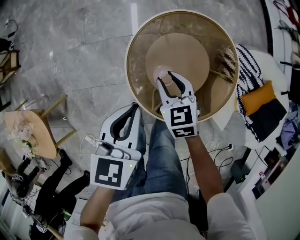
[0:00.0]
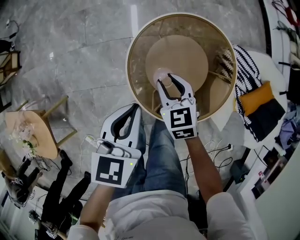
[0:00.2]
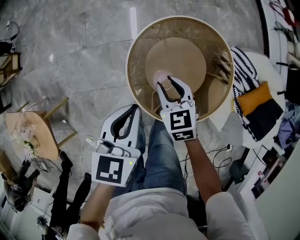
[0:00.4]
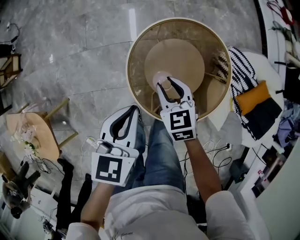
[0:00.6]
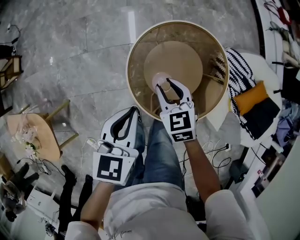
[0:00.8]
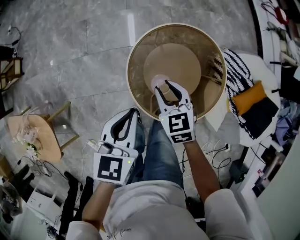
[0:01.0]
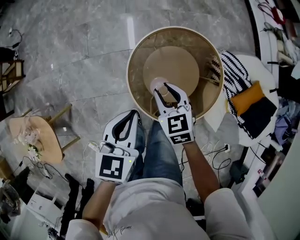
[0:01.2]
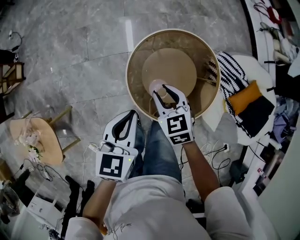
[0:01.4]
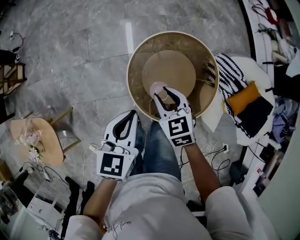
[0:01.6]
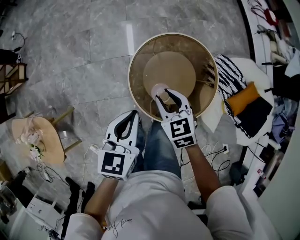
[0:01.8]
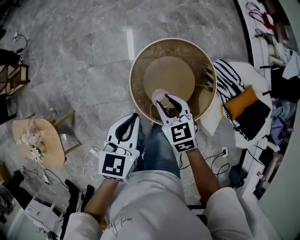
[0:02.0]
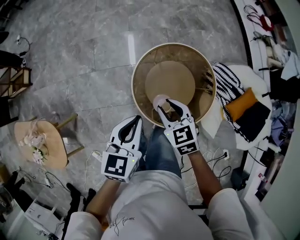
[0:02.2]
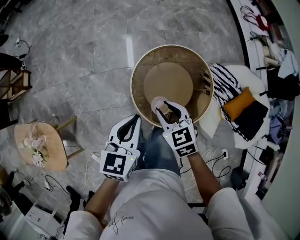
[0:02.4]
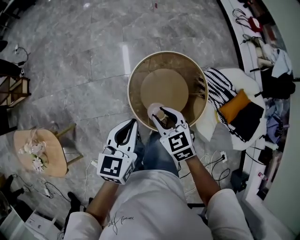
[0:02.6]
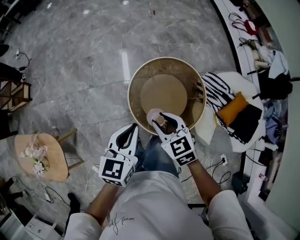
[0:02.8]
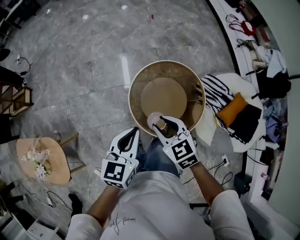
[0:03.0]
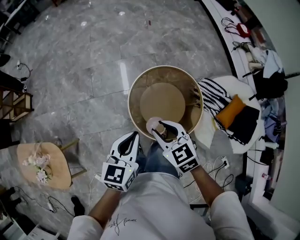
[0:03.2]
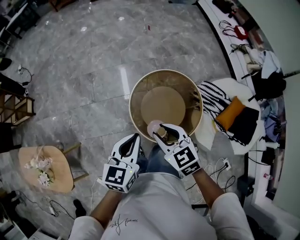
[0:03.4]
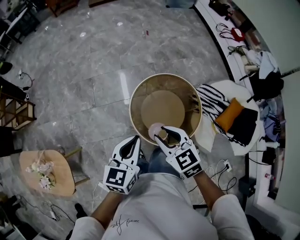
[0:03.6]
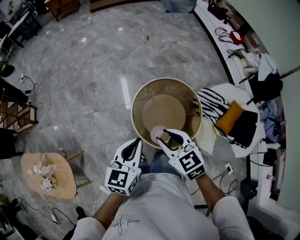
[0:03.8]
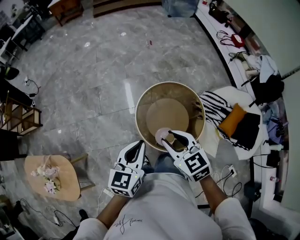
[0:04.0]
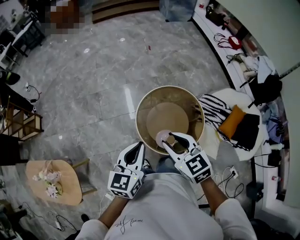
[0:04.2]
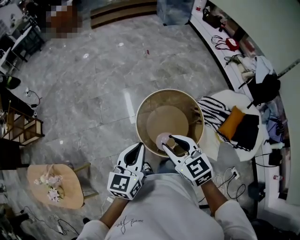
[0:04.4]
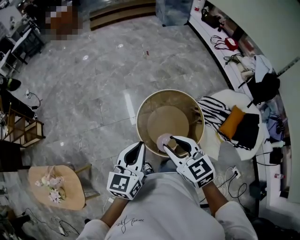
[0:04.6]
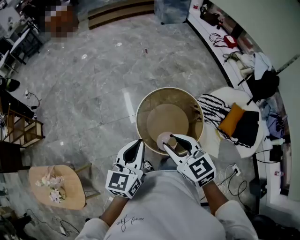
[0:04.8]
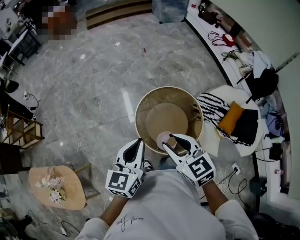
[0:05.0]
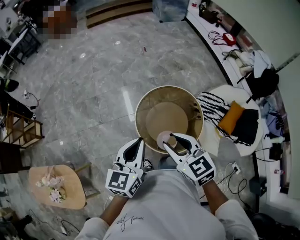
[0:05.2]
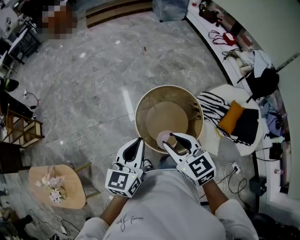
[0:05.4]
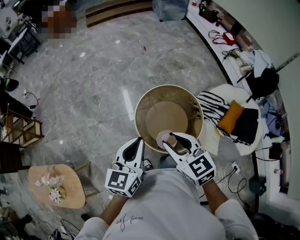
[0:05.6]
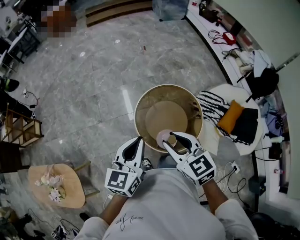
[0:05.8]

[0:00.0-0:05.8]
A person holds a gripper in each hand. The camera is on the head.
0:00.0 to 0:01.4: Both grippers travel together upward, about 10 cm.
0:01.4 to 0:02.8: The right gripper shifts roughly 15 cm upward and backward. Meanwhile the left gripper heads upward, covering roughly 10 cm.
0:02.8 to 0:04.4: The left gripper shifts some 10 cm upward; the right gripper goes some 15 cm upward.
0:04.4 to 0:05.8: There are only small adjustments of the grippers.

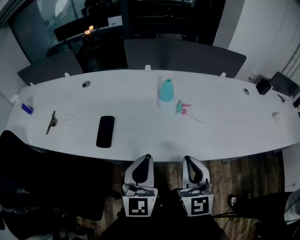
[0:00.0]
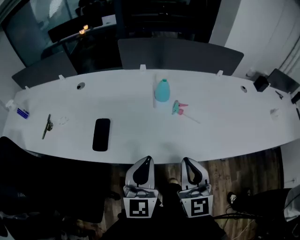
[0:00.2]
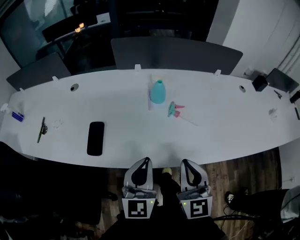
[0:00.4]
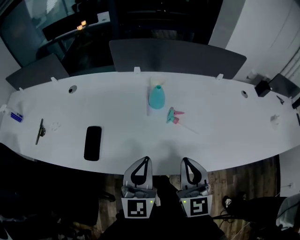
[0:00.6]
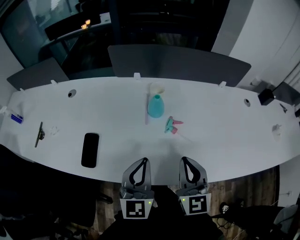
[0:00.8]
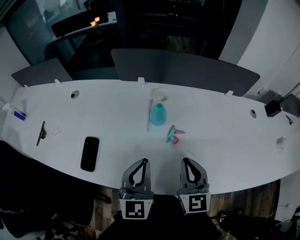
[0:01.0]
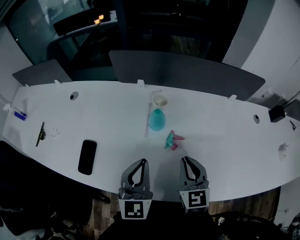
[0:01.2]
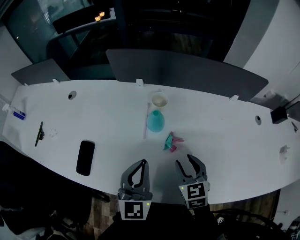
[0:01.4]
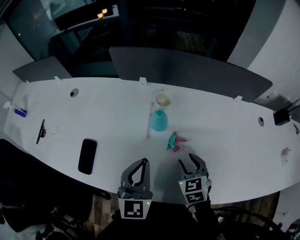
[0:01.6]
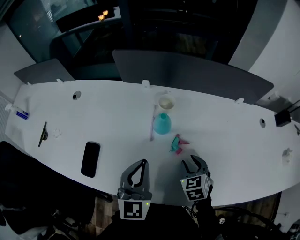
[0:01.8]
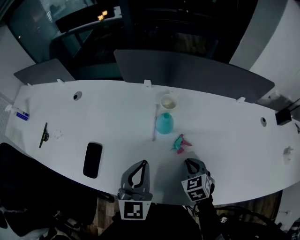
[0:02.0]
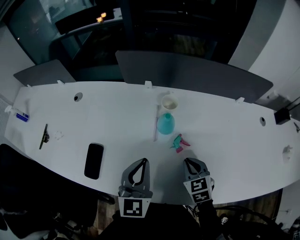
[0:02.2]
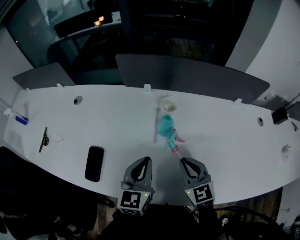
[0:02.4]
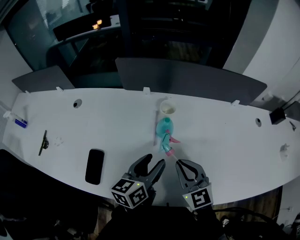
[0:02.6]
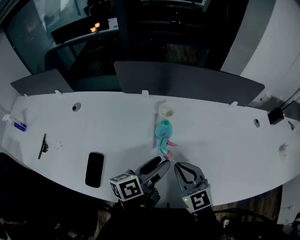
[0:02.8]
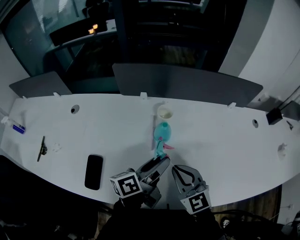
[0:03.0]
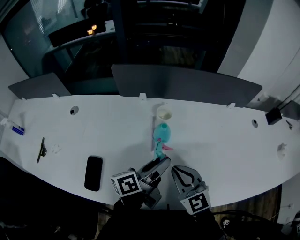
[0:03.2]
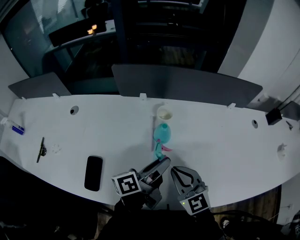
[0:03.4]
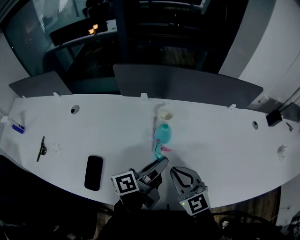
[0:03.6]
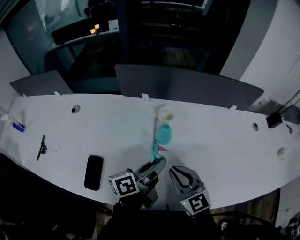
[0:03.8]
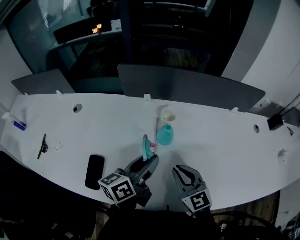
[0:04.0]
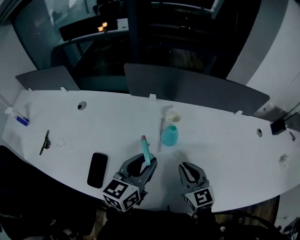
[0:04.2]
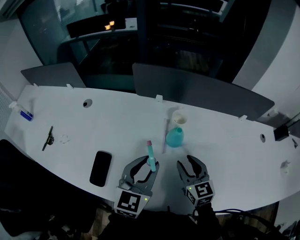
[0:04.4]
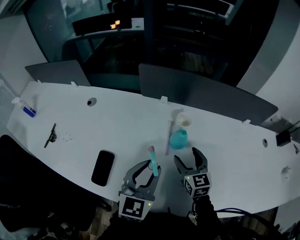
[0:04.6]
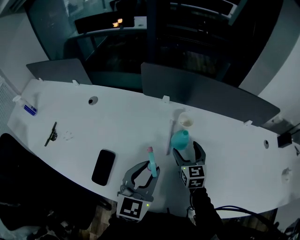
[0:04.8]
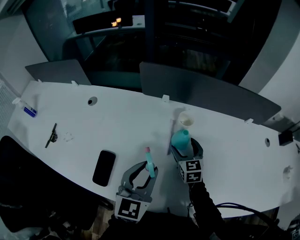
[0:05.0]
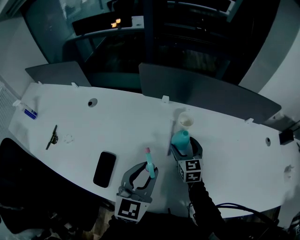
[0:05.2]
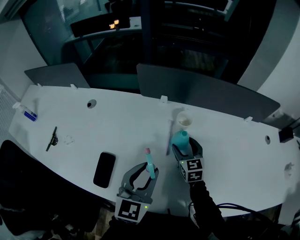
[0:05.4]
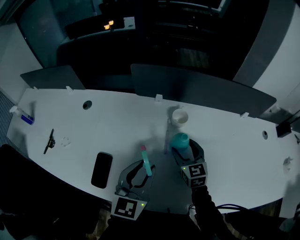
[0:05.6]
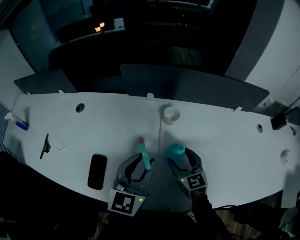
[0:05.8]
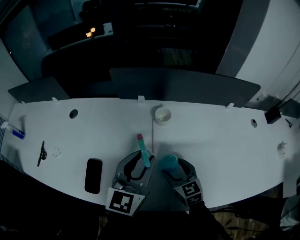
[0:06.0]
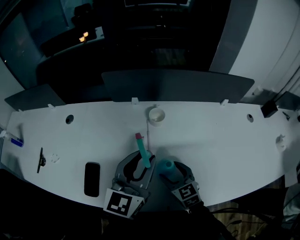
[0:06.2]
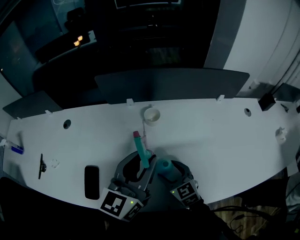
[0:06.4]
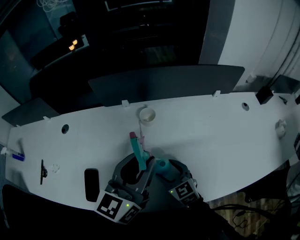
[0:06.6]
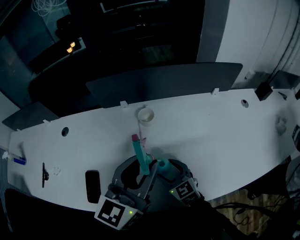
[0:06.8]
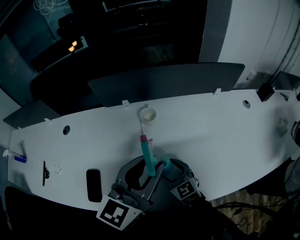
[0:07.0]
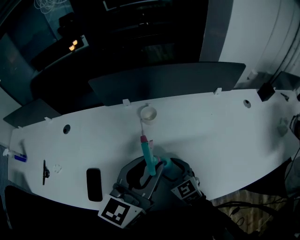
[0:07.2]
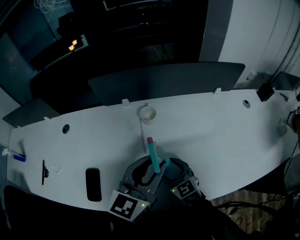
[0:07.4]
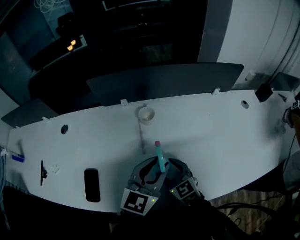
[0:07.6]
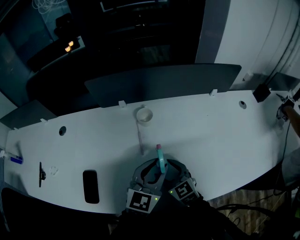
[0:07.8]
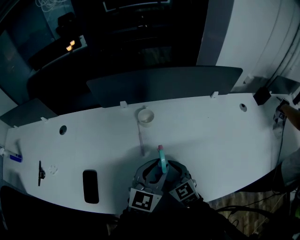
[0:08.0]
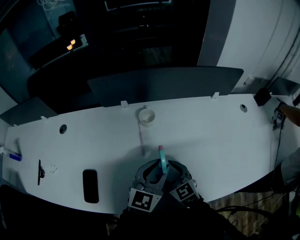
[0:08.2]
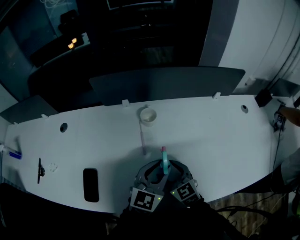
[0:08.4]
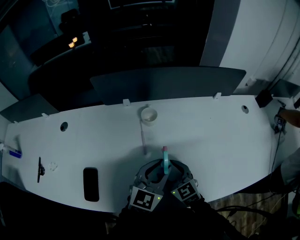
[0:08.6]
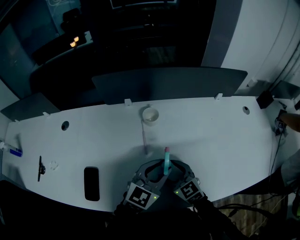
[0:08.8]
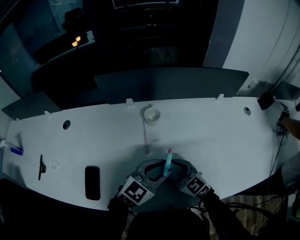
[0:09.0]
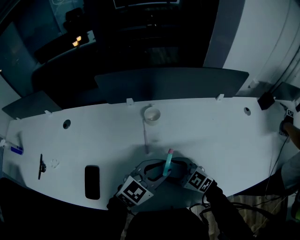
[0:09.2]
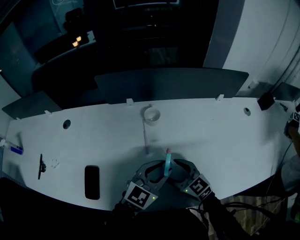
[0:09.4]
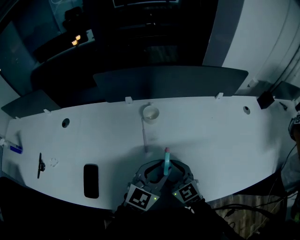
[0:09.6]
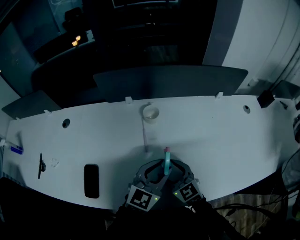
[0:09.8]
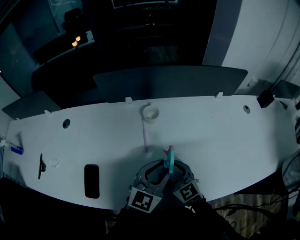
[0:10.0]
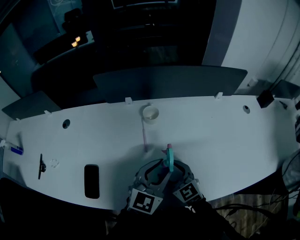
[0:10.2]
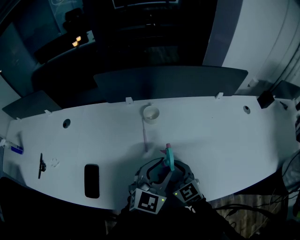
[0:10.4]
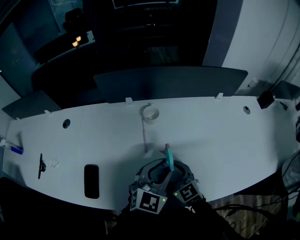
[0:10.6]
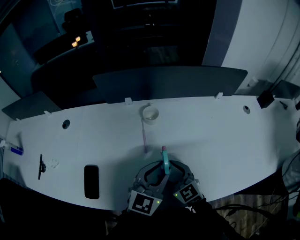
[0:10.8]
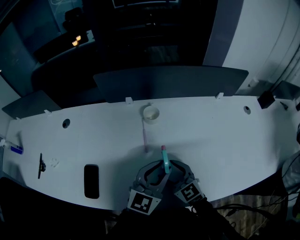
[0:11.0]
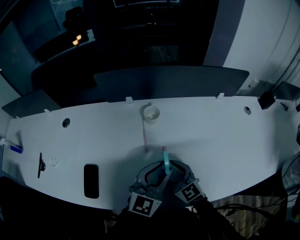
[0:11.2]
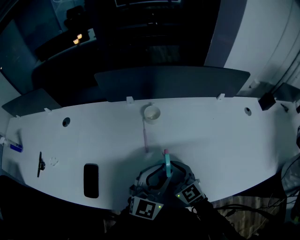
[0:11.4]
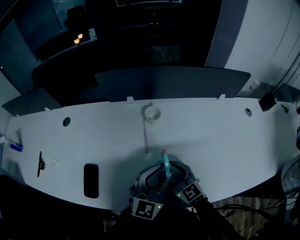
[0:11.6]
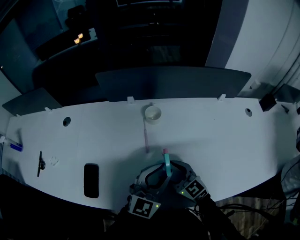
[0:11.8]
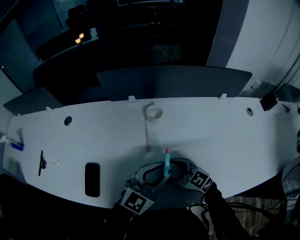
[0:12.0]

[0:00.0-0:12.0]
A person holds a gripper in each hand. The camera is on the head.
0:00.0 to 0:01.6: The right gripper shifts approximately 30 cm forward, downward and to the right, angles its fingers downward, by some 40 degrees, and opens its fingers. Meanwhile the left gripper travels forward by about 20 cm.
0:01.6 to 0:03.0: The left gripper shifts by some 5 cm, rotates around the line of its fingers by some 70 degrees, counterclockwise from behind, and opens its fingers. The right gripper shifts some 15 cm to the left and upward, changes its angle by some 30 degrees, and closes its fingers.
0:03.0 to 0:04.4: The left gripper moves to the left, about 5 cm, rolls clockwise, seen from behind, by some 60 degrees, and closes. Meanwhile the right gripper travels forward by roughly 5 cm.
0:04.4 to 0:06.0: The left gripper shifts by approximately 5 cm; the right gripper travels forward and back again, about 10 cm each way, and opens up.
0:06.0 to 0:07.6: The left gripper goes roughly 10 cm to the right.
0:07.6 to 0:09.0: The left gripper ends up about 5 cm from where it was, and changes its angle by approximately 20 degrees.
0:09.0 to 0:10.4: The grippers move only a little.
0:10.4 to 0:12.0: The right gripper rotates some 20 degrees.

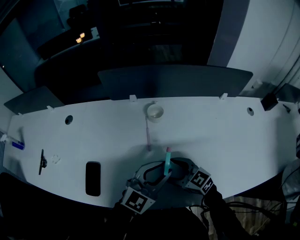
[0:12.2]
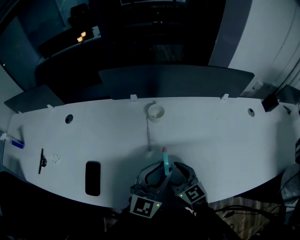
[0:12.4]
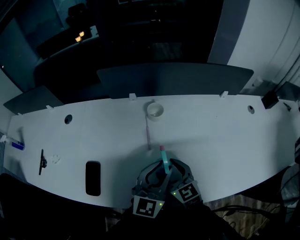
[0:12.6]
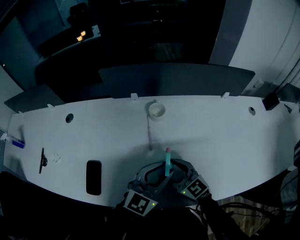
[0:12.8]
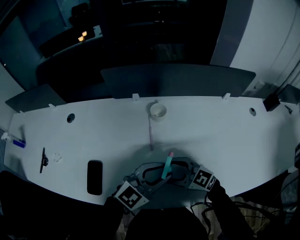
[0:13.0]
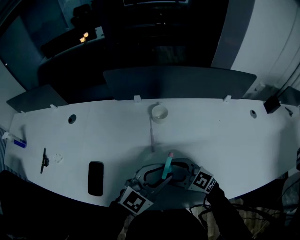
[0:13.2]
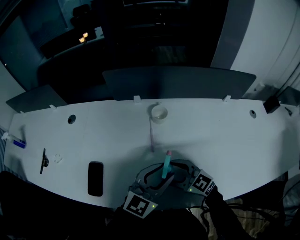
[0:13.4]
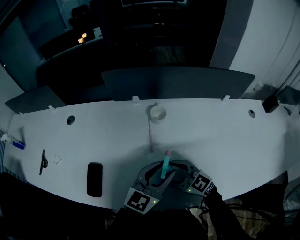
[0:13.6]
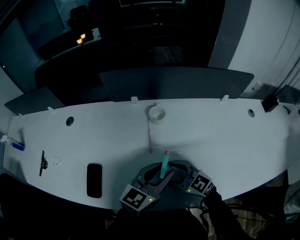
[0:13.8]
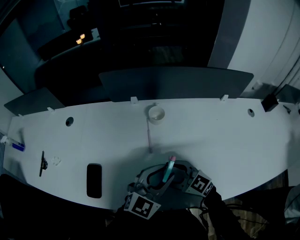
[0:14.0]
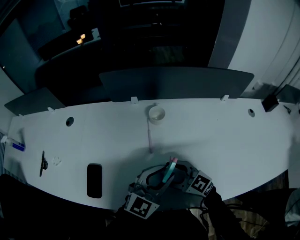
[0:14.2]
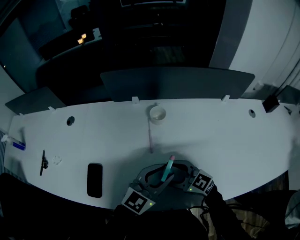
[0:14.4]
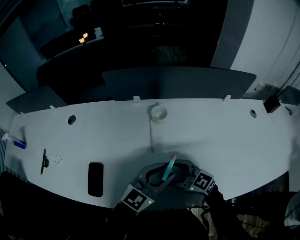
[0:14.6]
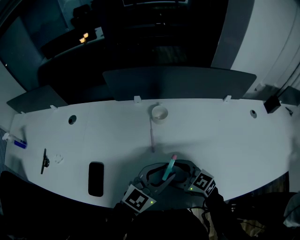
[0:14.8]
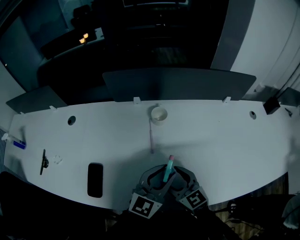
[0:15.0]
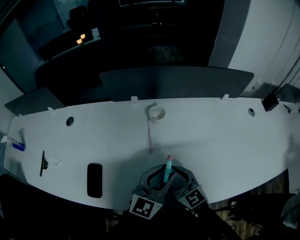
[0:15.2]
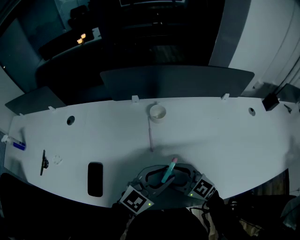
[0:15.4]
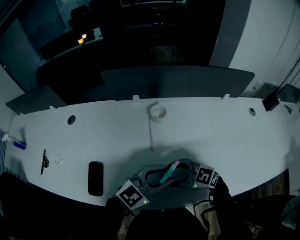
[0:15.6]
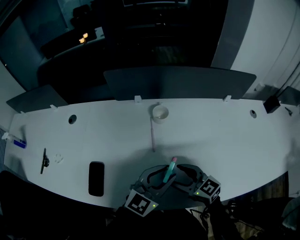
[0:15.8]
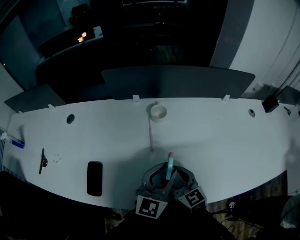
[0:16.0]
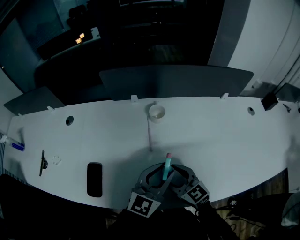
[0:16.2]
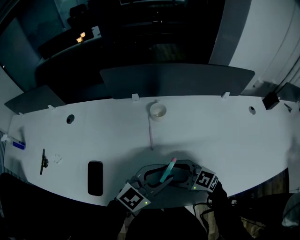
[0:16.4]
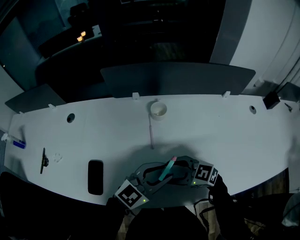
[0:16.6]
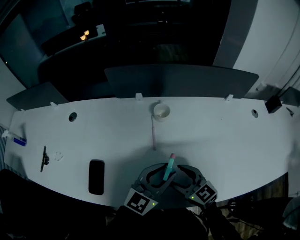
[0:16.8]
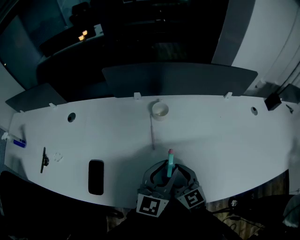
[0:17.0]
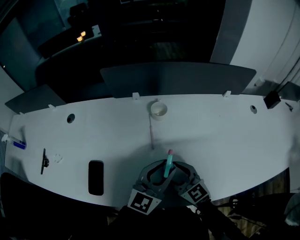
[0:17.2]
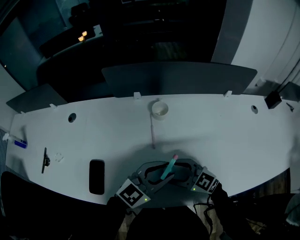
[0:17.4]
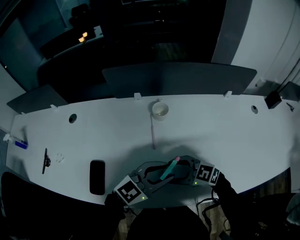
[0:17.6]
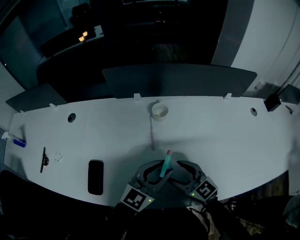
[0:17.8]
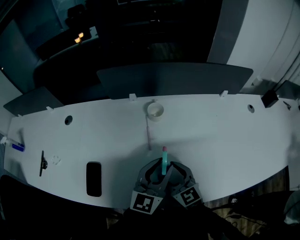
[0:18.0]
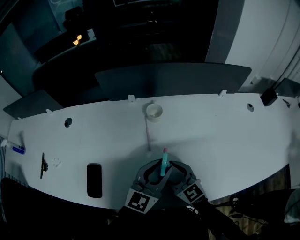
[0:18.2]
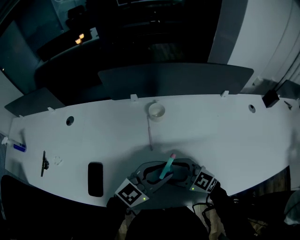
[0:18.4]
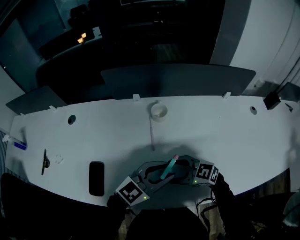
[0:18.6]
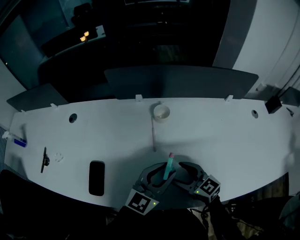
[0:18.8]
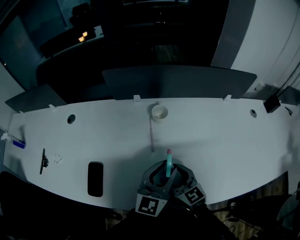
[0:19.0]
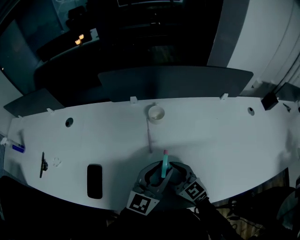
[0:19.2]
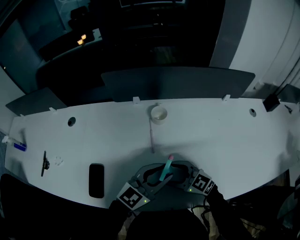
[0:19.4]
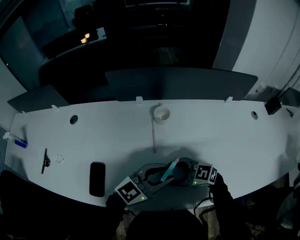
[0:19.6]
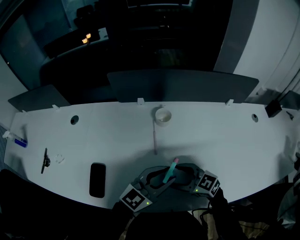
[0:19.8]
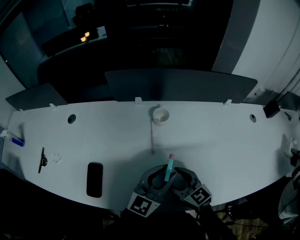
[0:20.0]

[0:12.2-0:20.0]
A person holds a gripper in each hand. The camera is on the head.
0:12.2 to 0:13.8: The left gripper swivels roughly 20 degrees.
0:16.8 to 0:18.4: The right gripper swivels roughly 20 degrees.
0:18.4 to 0:20.0: The right gripper changes its angle by some 20 degrees; the left gripper changes its angle by approximately 20 degrees.
